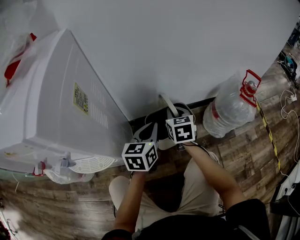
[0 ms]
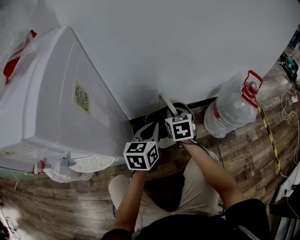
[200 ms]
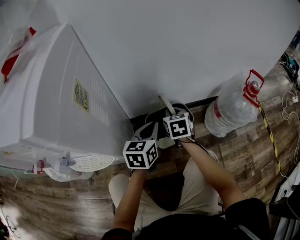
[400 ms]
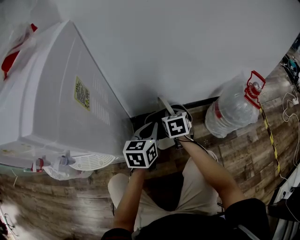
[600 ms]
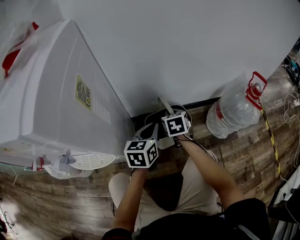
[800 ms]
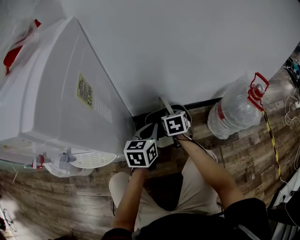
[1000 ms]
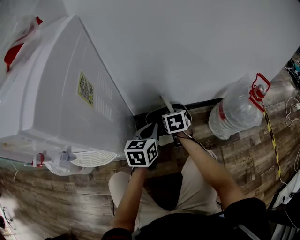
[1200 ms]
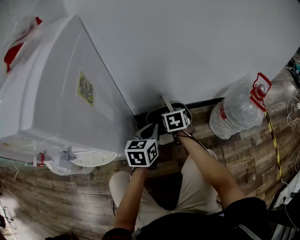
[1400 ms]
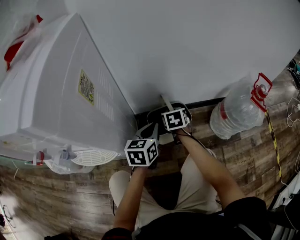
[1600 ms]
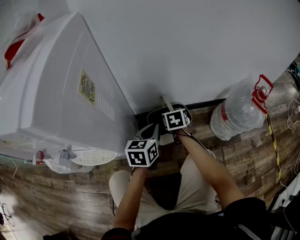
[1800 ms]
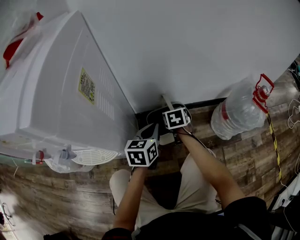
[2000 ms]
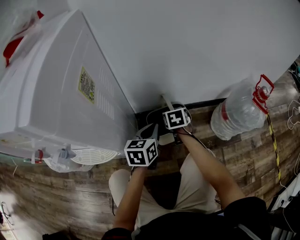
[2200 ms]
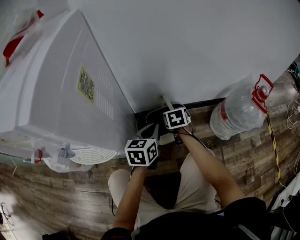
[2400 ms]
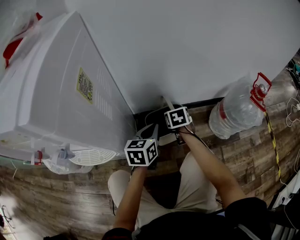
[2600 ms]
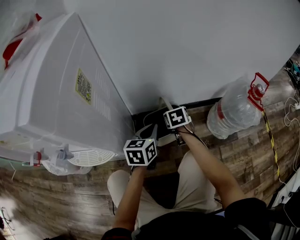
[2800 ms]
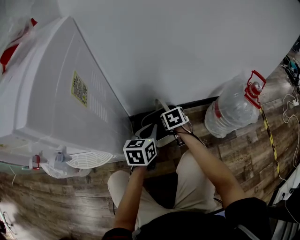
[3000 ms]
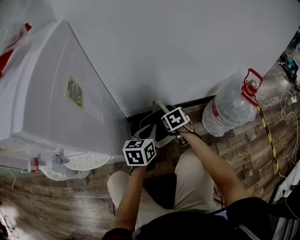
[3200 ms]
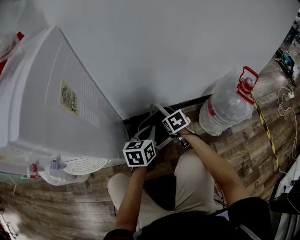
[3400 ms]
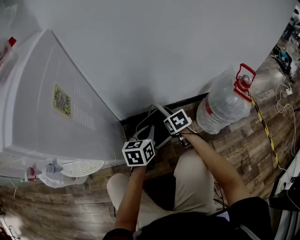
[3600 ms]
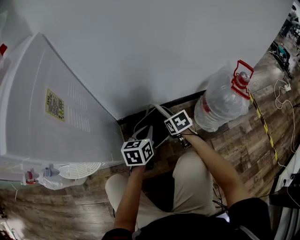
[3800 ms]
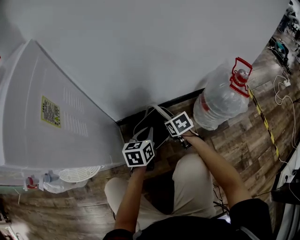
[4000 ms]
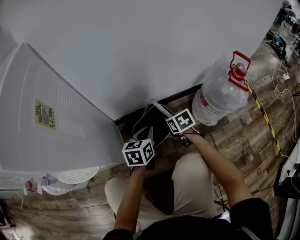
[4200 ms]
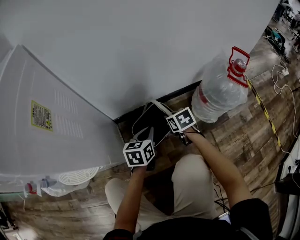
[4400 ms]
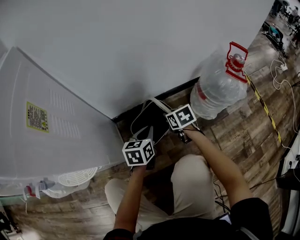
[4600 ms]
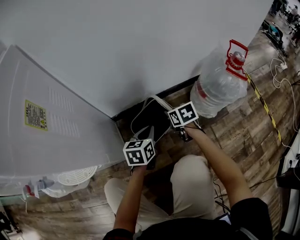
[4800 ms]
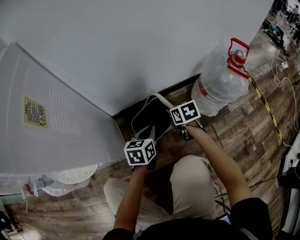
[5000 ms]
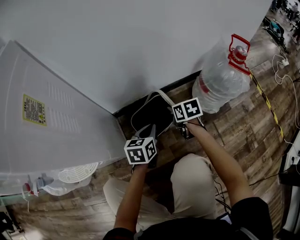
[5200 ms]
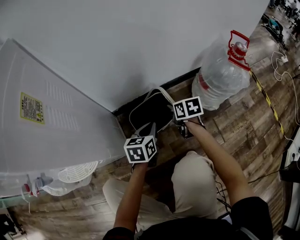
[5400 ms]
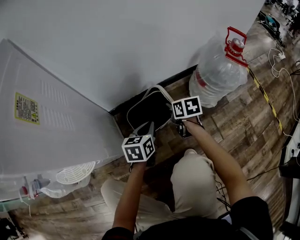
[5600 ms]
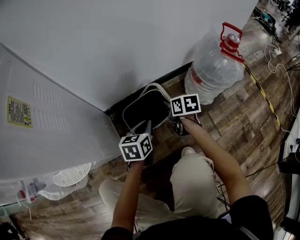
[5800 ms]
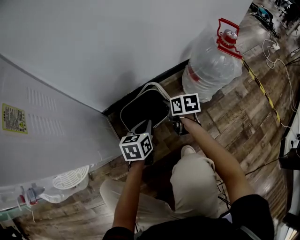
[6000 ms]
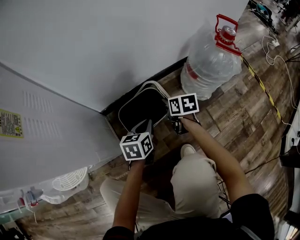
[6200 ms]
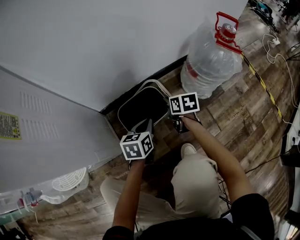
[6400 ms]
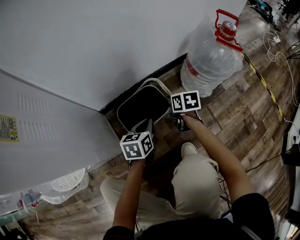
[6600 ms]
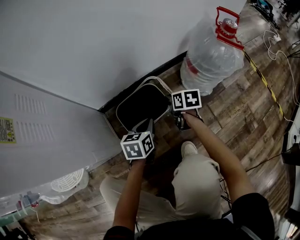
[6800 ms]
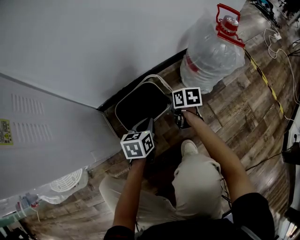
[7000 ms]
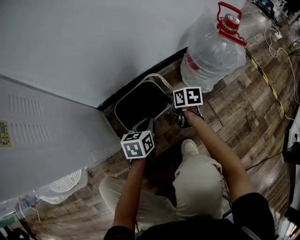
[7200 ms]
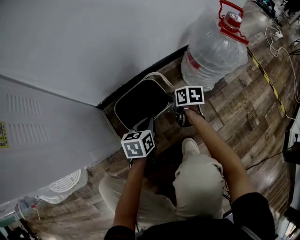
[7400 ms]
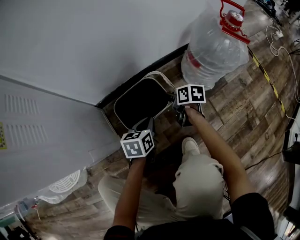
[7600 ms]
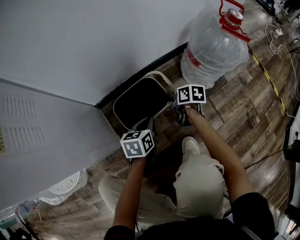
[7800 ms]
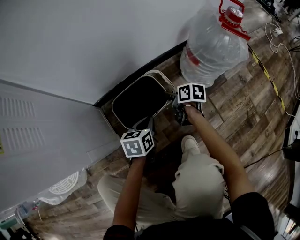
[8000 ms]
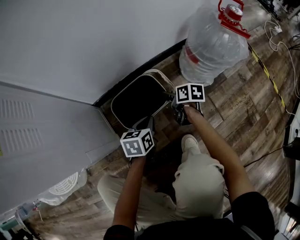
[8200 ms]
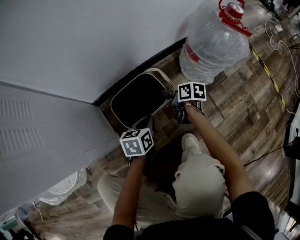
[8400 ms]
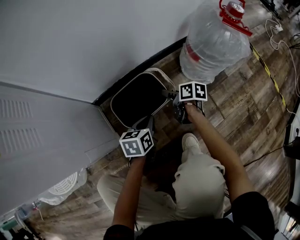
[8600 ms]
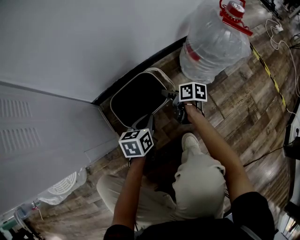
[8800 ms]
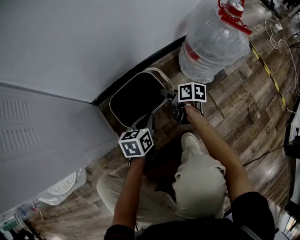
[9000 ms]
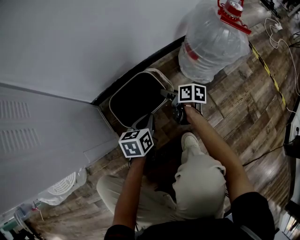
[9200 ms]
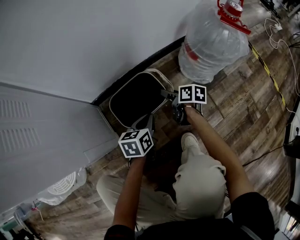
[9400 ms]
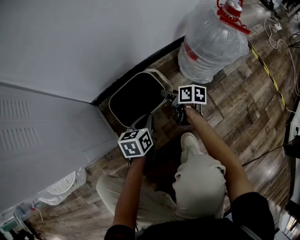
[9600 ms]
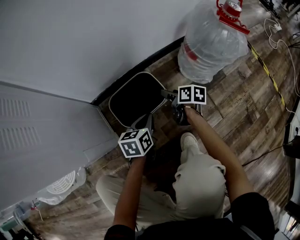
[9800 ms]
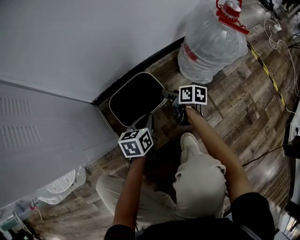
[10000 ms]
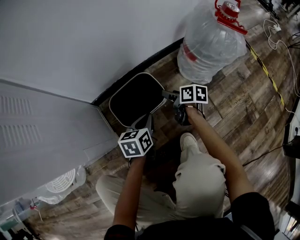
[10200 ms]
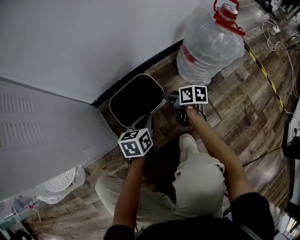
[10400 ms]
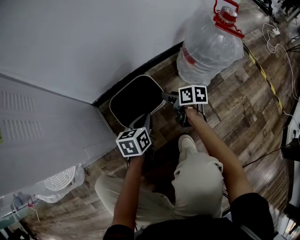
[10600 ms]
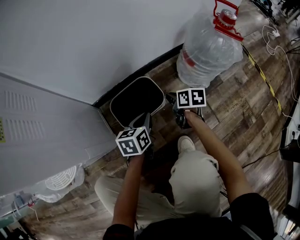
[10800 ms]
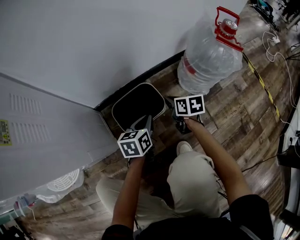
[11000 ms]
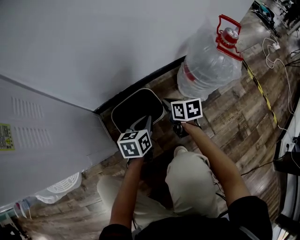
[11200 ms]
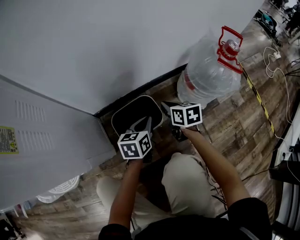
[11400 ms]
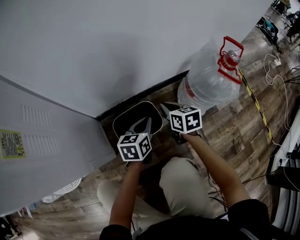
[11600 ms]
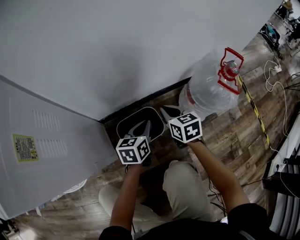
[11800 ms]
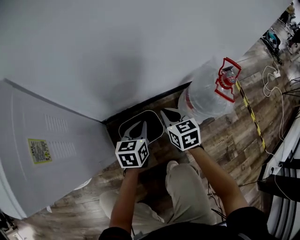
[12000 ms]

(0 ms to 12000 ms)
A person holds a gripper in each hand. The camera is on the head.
0 ms - 1600 ms: The left gripper goes approximately 5 cm downward; the right gripper goes roughly 10 cm downward.
1600 ms - 3000 ms: The grippers move only a little.
3000 ms - 4400 ms: The left gripper moves downward and to the right, some 10 cm; the right gripper goes some 10 cm to the right.
4400 ms - 6000 ms: The left gripper shifts by roughly 5 cm, while the right gripper moves approximately 5 cm, and swivels roughly 30 degrees.
6000 ms - 7600 ms: The grippers both shift downward by about 5 cm. The right gripper opens its fingers.
7600 ms - 9000 ms: The right gripper opens its fingers.
9000 ms - 10400 ms: The grippers make only small movements.
10400 ms - 12000 ms: The right gripper goes about 25 cm upward, rolls counterclockwise, seen from behind, by roughly 40 degrees, and closes up. Meanwhile the left gripper moves upward and forward, roughly 20 cm.

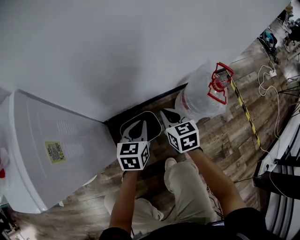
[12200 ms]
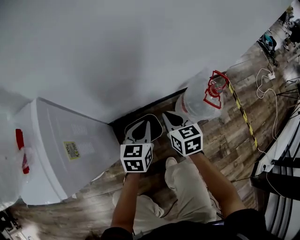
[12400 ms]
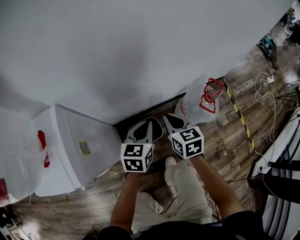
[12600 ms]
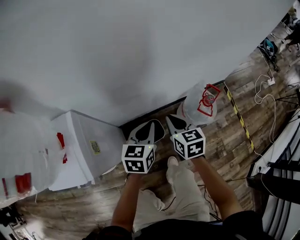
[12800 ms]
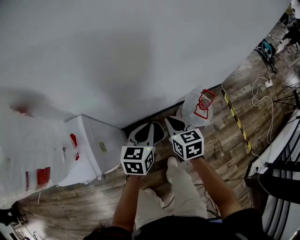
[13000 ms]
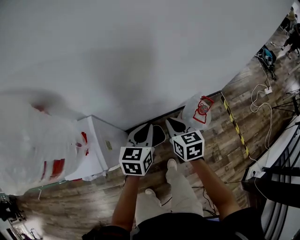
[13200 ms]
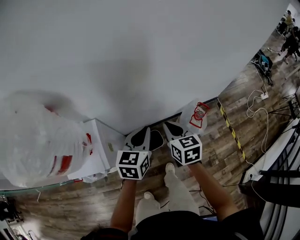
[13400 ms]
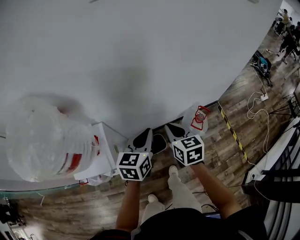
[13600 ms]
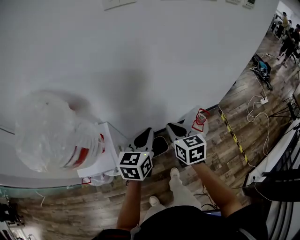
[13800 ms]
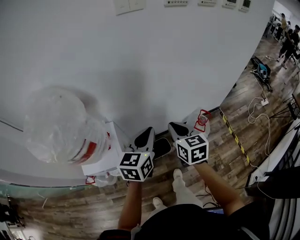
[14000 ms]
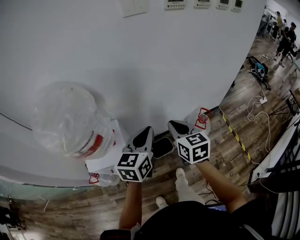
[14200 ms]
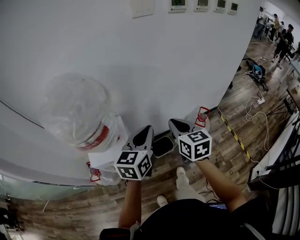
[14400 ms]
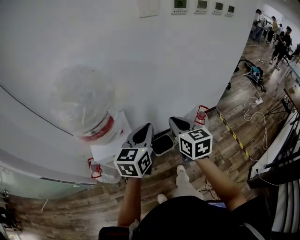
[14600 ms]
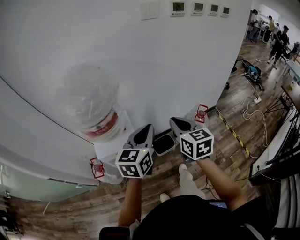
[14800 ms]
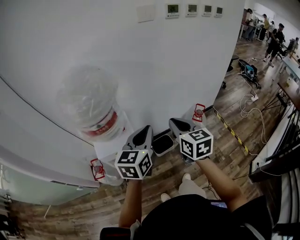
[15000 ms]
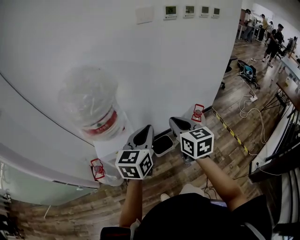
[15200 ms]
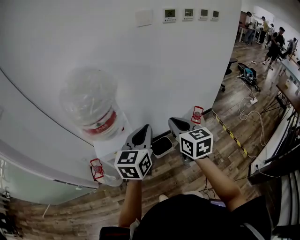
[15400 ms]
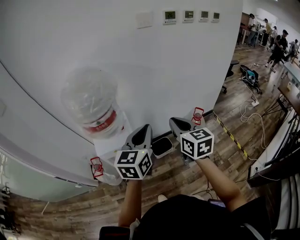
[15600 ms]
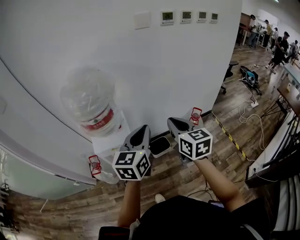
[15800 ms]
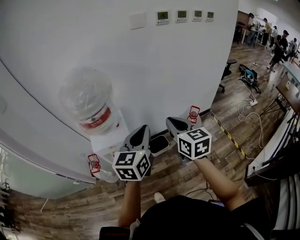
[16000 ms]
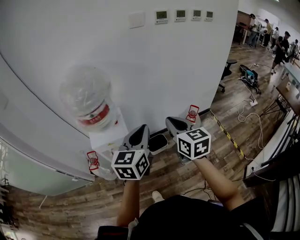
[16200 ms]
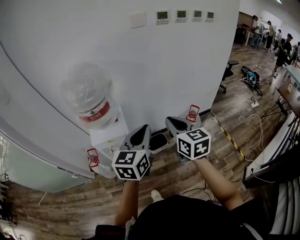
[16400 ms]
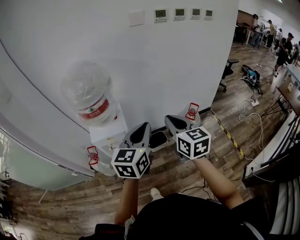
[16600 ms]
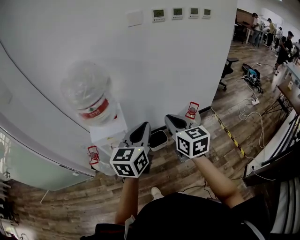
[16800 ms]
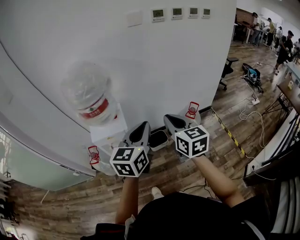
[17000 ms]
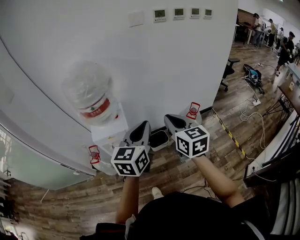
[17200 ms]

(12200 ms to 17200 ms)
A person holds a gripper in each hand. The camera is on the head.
12200 ms - 13800 ms: Both grippers move upward, roughly 50 cm.
13800 ms - 15600 ms: The grippers both shift backward and upward by approximately 30 cm.
15600 ms - 17200 ms: The left gripper travels backward and to the right by roughly 10 cm, while the right gripper travels backward by roughly 10 cm.

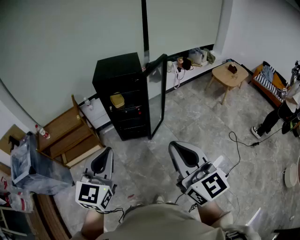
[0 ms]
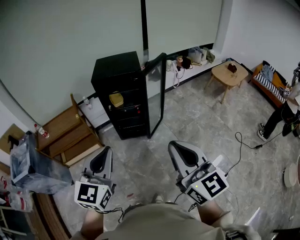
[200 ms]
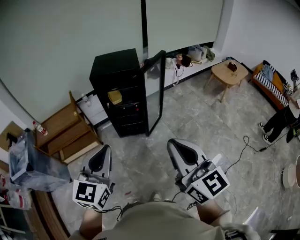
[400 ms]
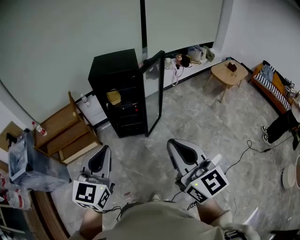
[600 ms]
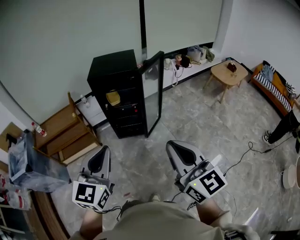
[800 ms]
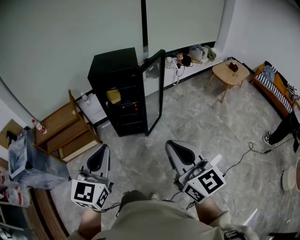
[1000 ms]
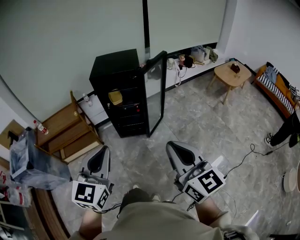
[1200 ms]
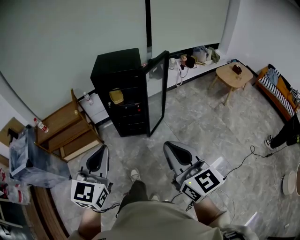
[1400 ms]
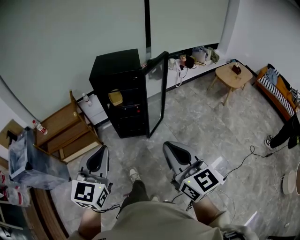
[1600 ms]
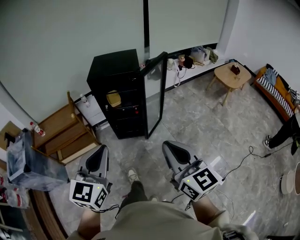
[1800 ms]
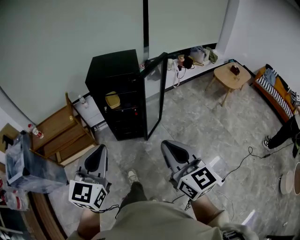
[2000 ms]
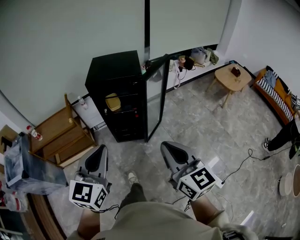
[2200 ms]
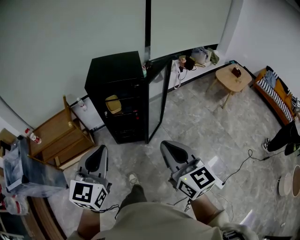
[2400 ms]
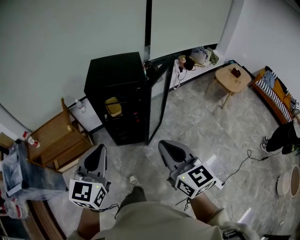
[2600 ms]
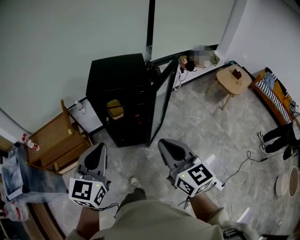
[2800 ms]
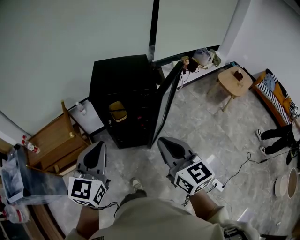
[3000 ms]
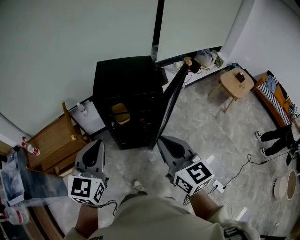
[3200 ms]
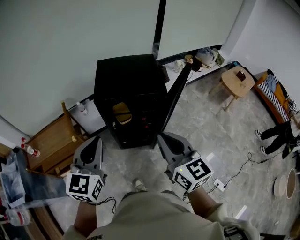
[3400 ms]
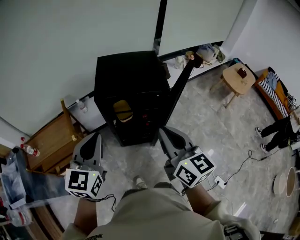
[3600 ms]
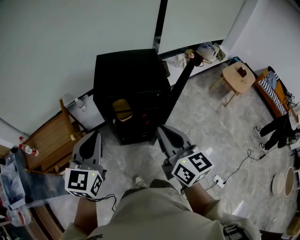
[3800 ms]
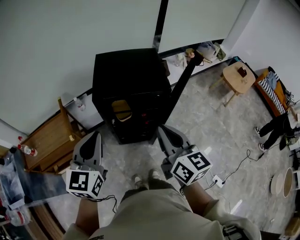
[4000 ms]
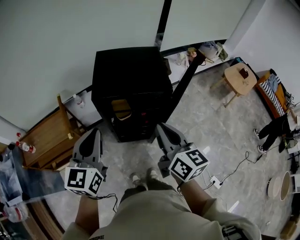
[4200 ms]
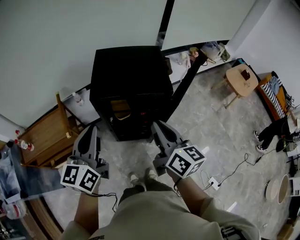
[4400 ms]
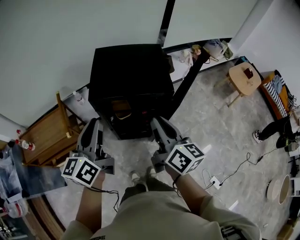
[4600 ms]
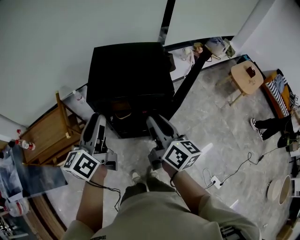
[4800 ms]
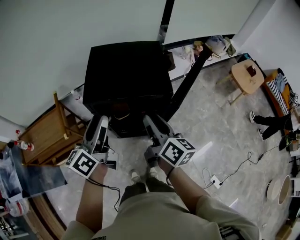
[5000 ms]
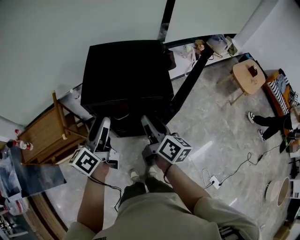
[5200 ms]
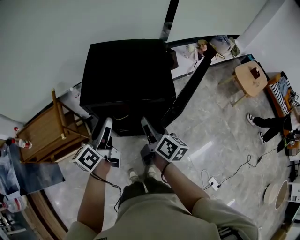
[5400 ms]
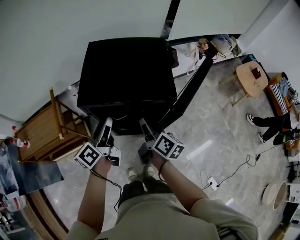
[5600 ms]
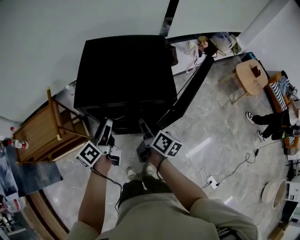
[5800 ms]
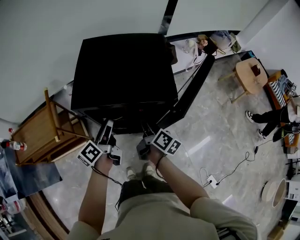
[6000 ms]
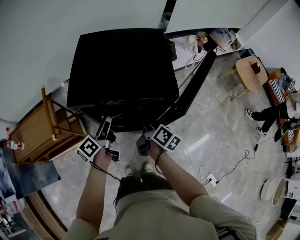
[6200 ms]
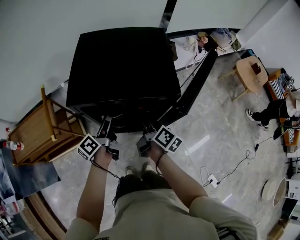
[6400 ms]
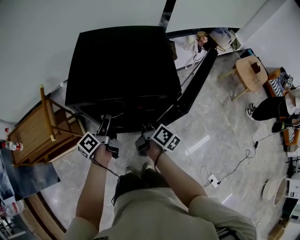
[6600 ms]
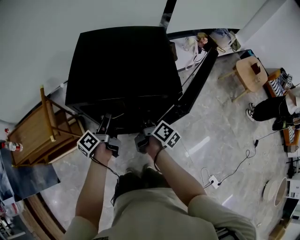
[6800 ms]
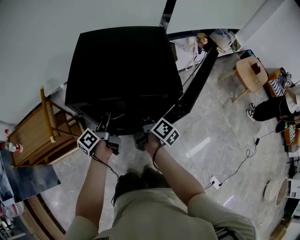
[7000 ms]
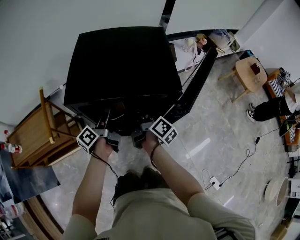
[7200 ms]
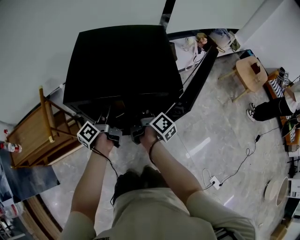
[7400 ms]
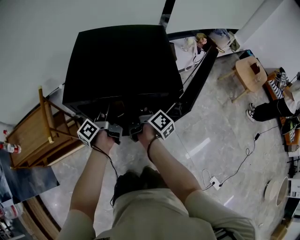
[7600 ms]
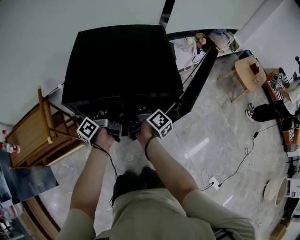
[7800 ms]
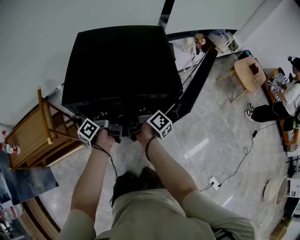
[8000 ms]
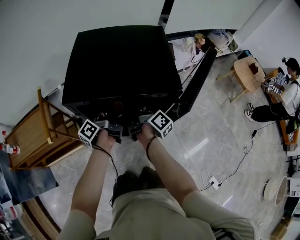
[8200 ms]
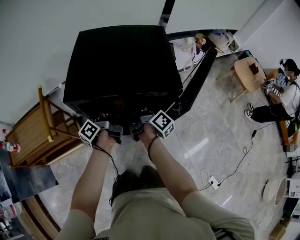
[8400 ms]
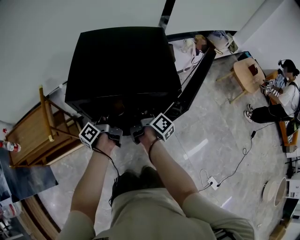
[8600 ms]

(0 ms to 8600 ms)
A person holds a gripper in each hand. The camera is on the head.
0 ms - 1400 ms: The right gripper shifts by some 5 cm.
1400 ms - 2800 ms: Both grippers move forward, roughly 25 cm.
2800 ms - 4400 ms: The left gripper travels forward and to the left by approximately 20 cm, and rotates some 20 degrees. Meanwhile the right gripper shifts roughly 25 cm forward, and turns by roughly 20 degrees.
4400 ms - 5800 ms: Both grippers travel together downward and forward, some 25 cm. The left gripper rolls counterclockwise, seen from behind, by approximately 40 degrees, and opens up. The right gripper turns by some 30 degrees, and opens up.
5800 ms - 7200 ms: The grippers both shift downward and forward by approximately 10 cm.
7200 ms - 8600 ms: The left gripper closes its fingers. Meanwhile the right gripper closes its fingers.
